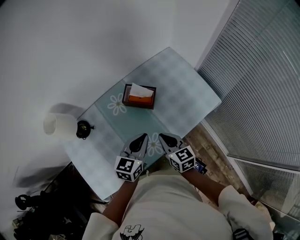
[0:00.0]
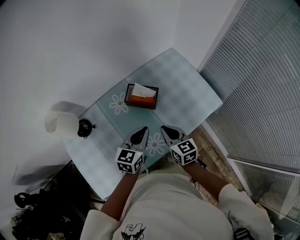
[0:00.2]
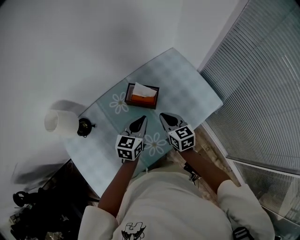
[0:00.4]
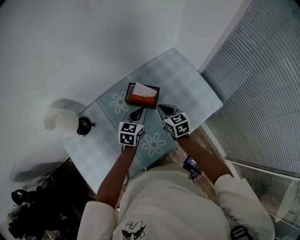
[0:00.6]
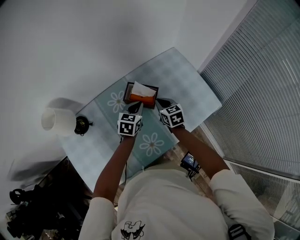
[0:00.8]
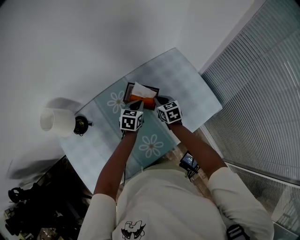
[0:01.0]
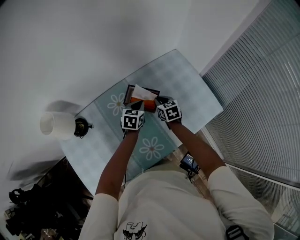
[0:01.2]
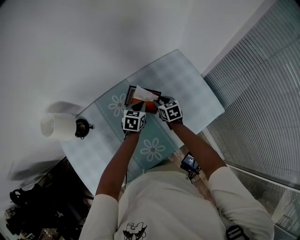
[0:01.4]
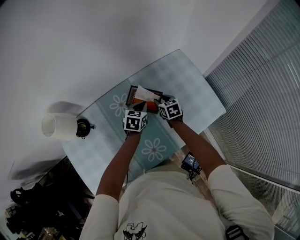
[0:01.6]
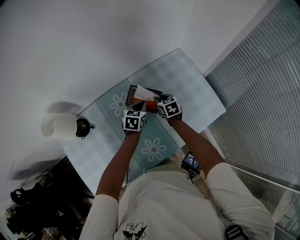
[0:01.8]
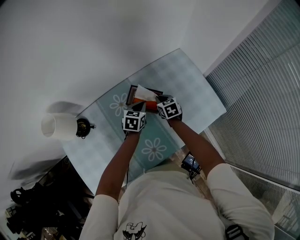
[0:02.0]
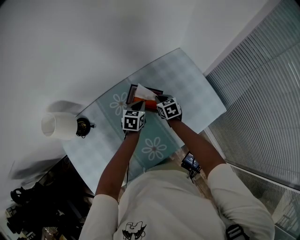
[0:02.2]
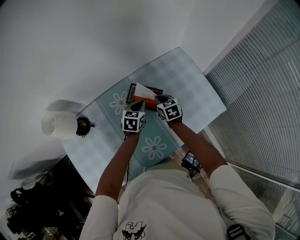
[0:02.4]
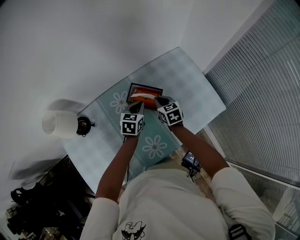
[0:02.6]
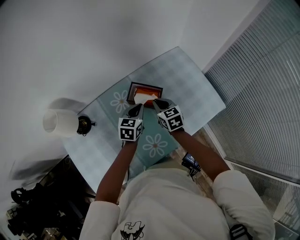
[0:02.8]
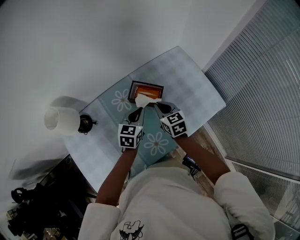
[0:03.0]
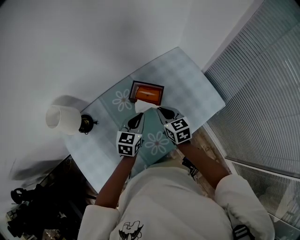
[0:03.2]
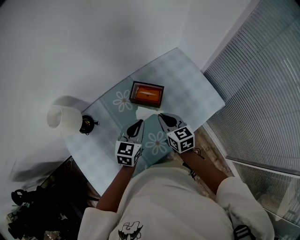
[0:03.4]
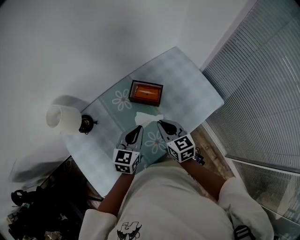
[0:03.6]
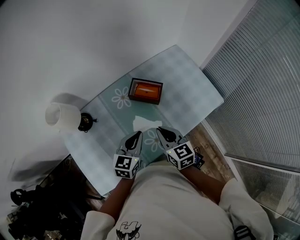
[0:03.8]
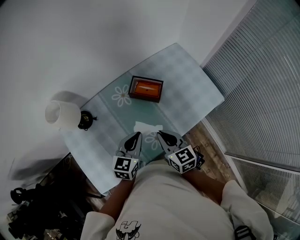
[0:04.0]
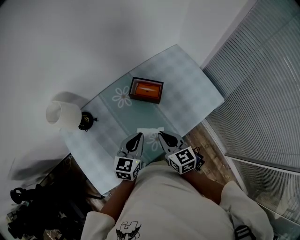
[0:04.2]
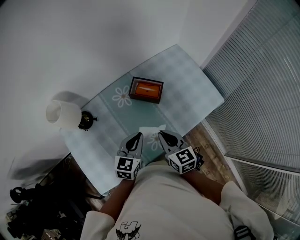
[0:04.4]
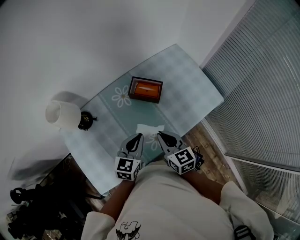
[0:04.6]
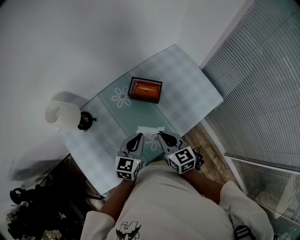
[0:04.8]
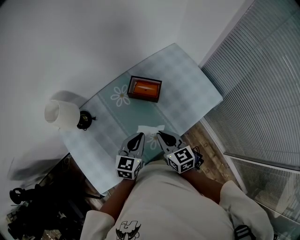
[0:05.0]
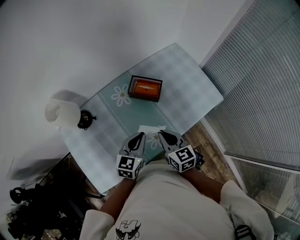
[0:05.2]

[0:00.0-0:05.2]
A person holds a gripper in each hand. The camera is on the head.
0:00.0 to 0:01.8: The grippers both shift forward and downward by about 25 cm. The left gripper rotates roughly 20 degrees. Meanwhile the right gripper opens.
0:01.8 to 0:03.4: The two grippers go approximately 20 cm backward and upward. The right gripper closes its fingers.
0:03.4 to 0:05.2: Both grippers move backward, approximately 10 cm.

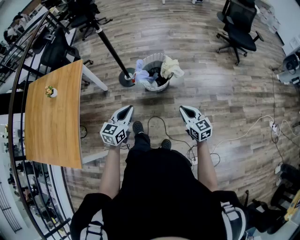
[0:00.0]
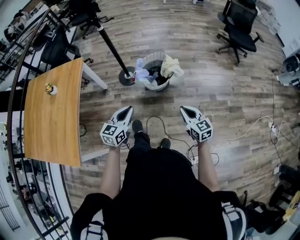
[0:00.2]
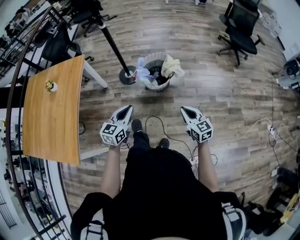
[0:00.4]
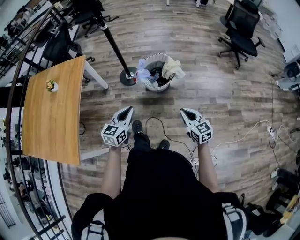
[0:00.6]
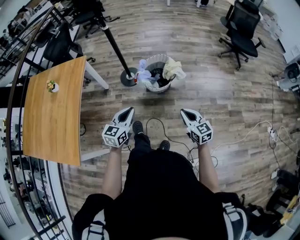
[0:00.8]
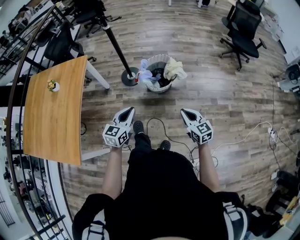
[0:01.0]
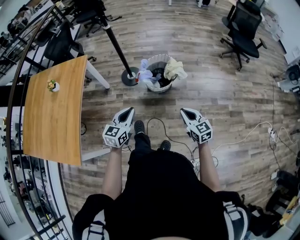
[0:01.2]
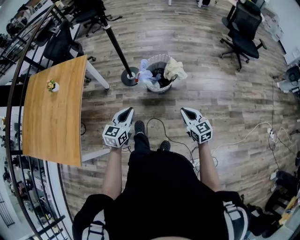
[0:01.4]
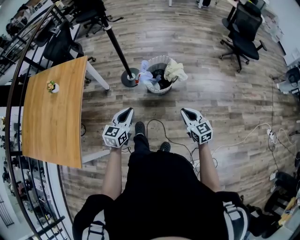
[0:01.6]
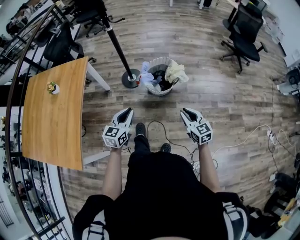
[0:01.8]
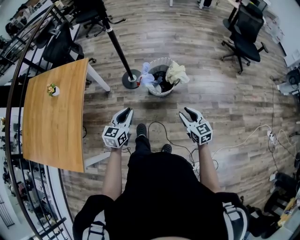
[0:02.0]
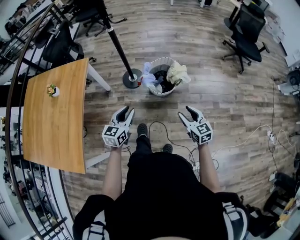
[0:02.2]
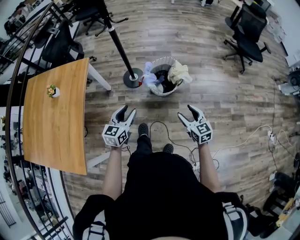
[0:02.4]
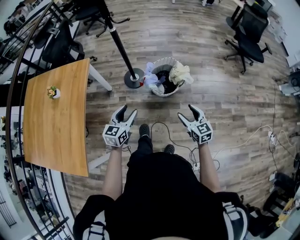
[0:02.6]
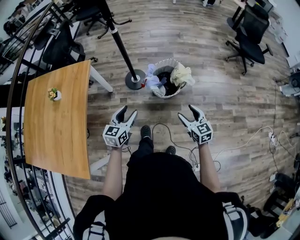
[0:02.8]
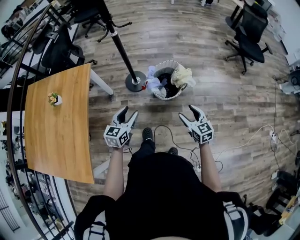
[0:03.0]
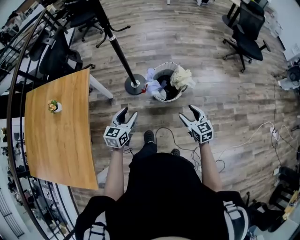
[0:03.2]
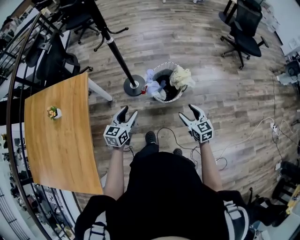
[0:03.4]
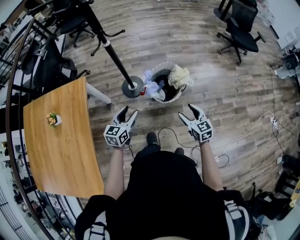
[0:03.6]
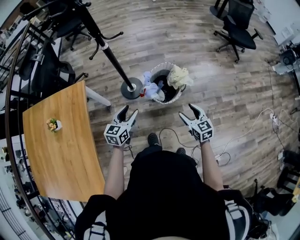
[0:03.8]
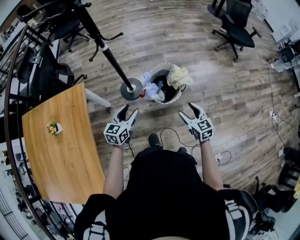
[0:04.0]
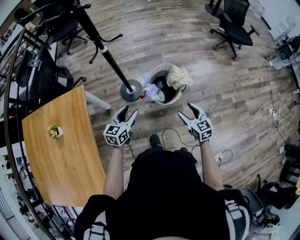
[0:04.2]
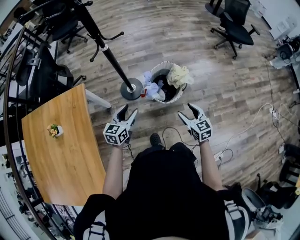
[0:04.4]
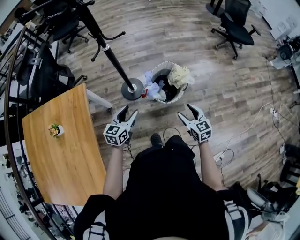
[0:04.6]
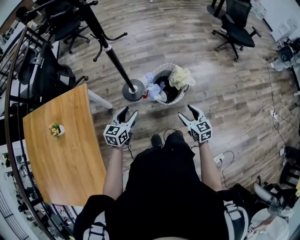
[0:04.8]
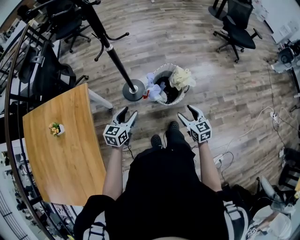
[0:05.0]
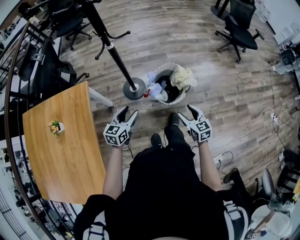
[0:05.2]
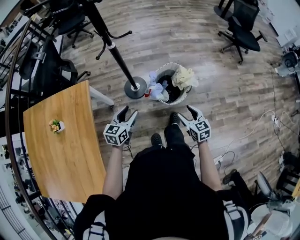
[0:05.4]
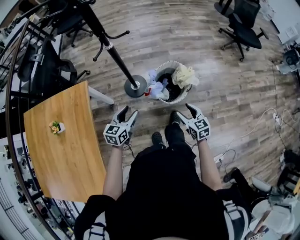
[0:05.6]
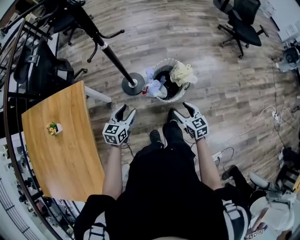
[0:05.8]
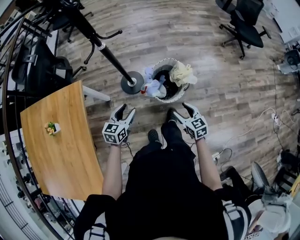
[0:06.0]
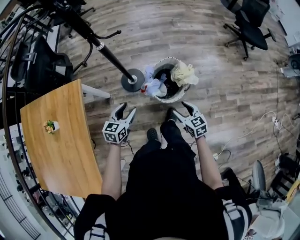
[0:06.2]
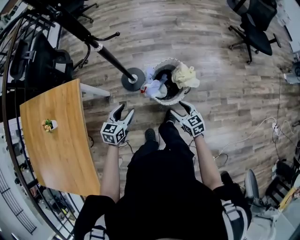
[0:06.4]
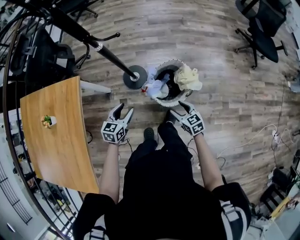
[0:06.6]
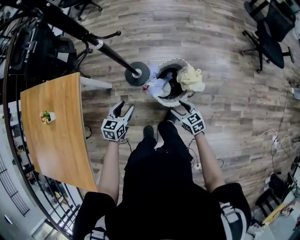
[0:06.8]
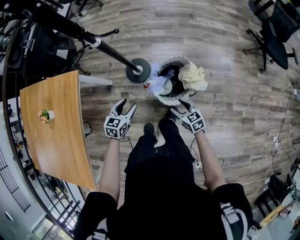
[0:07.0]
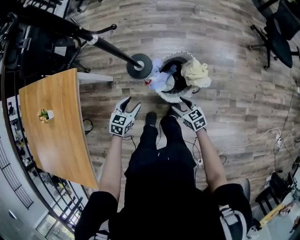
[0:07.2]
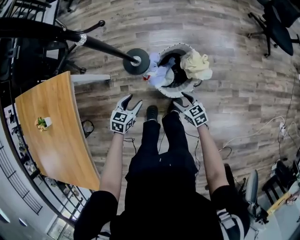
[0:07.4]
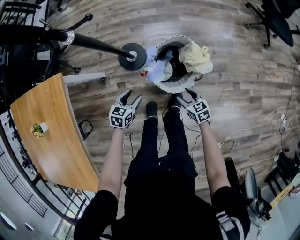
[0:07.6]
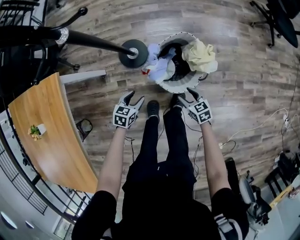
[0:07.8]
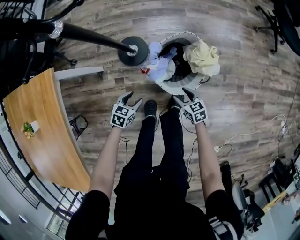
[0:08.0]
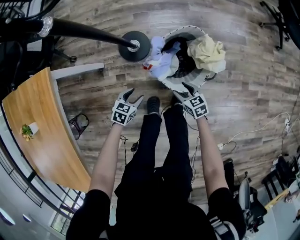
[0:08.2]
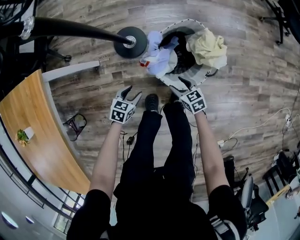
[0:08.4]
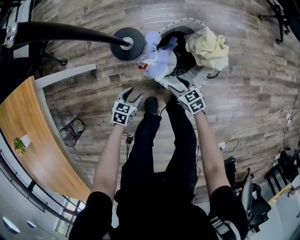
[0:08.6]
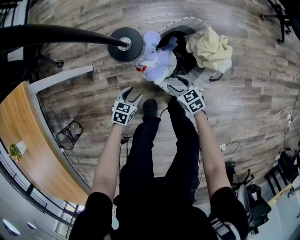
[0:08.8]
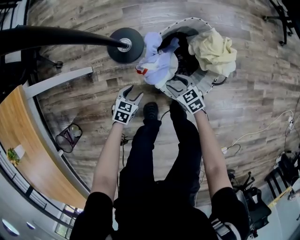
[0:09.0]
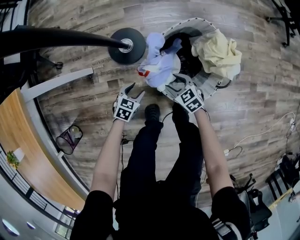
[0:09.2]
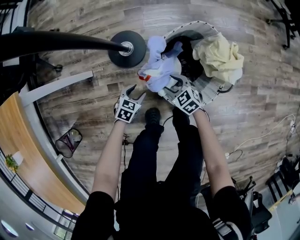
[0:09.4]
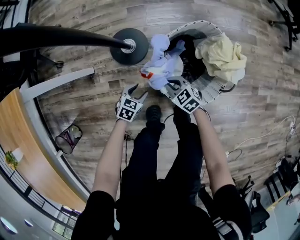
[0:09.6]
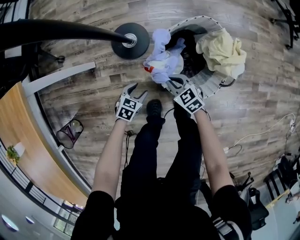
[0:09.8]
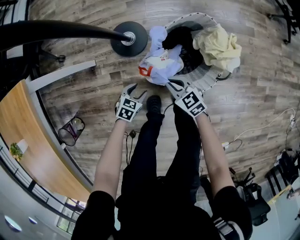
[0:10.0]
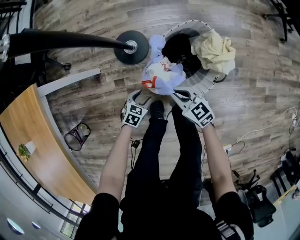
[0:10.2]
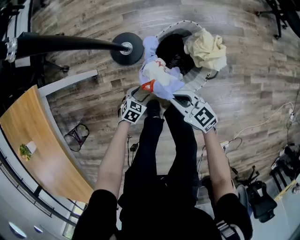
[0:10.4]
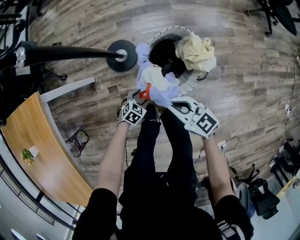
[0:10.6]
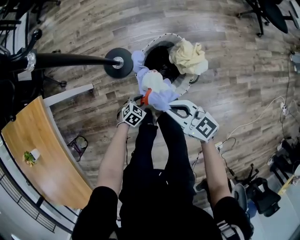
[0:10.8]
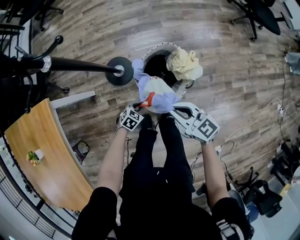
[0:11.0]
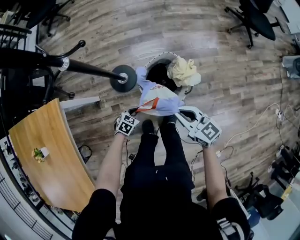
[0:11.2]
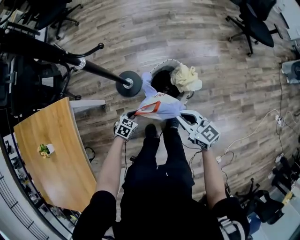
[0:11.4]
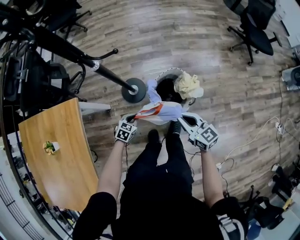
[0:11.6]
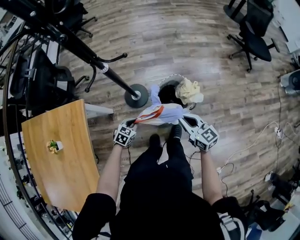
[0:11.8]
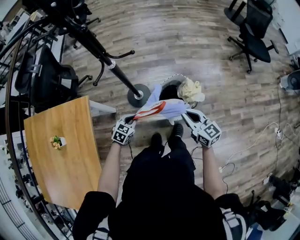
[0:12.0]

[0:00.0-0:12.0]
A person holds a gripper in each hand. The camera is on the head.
0:00.0 to 0:01.6: The grippers make only small movements.
0:01.6 to 0:03.0: Both grippers move forward and to the left, roughly 15 cm. The right gripper opens, while the left gripper opens.
0:03.0 to 0:04.4: The right gripper travels forward and to the left by about 10 cm, while the left gripper heads forward and to the left, covering some 15 cm.
0:04.4 to 0:06.0: The right gripper shifts by roughly 5 cm; the left gripper ends up approximately 5 cm from where it was.
0:06.0 to 0:07.6: The right gripper is displaced downward and forward by some 25 cm. The left gripper travels downward by some 25 cm.
0:07.6 to 0:09.0: Both grippers travel together downward, some 25 cm.
0:09.0 to 0:10.4: The right gripper heads upward, covering approximately 20 cm, swivels about 20 degrees, and closes its fingers, while the left gripper travels upward by some 5 cm.
0:10.4 to 0:12.0: The grippers both shift upward by roughly 35 cm. The left gripper closes its fingers. The right gripper changes its angle by roughly 20 degrees.

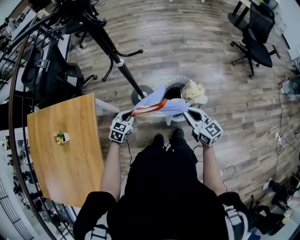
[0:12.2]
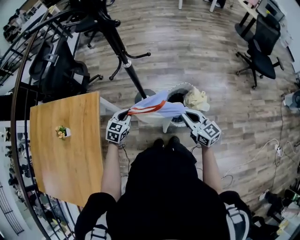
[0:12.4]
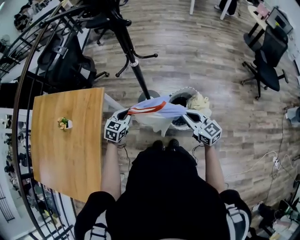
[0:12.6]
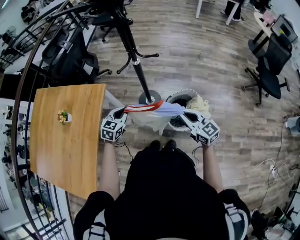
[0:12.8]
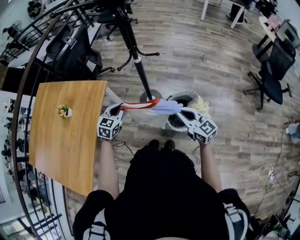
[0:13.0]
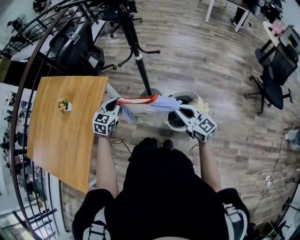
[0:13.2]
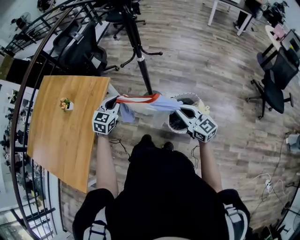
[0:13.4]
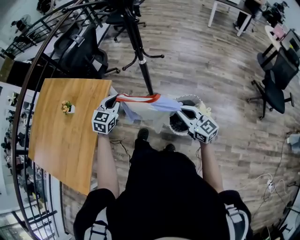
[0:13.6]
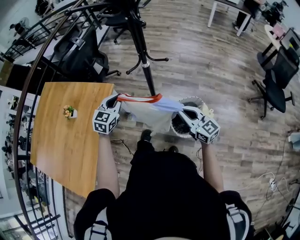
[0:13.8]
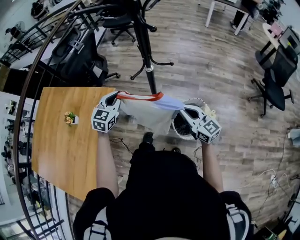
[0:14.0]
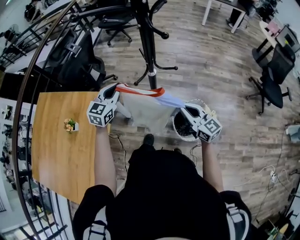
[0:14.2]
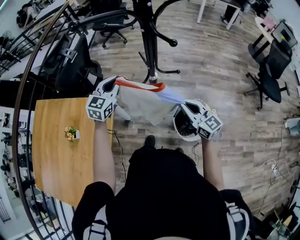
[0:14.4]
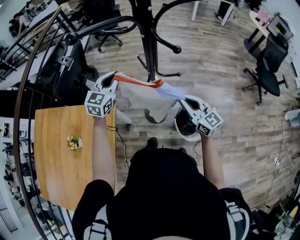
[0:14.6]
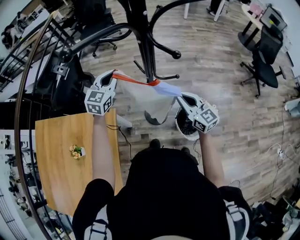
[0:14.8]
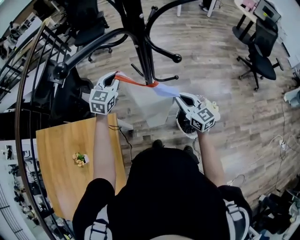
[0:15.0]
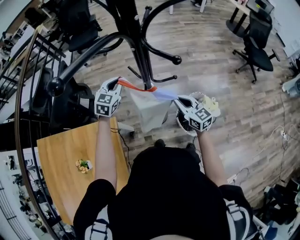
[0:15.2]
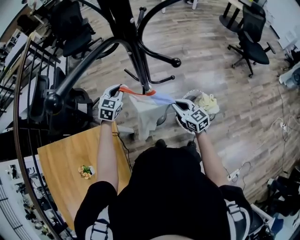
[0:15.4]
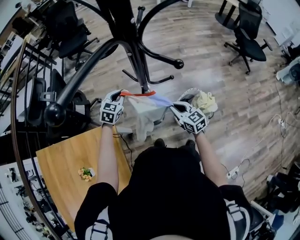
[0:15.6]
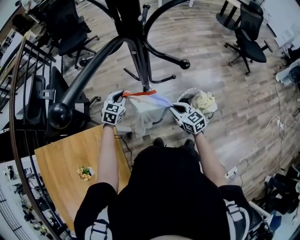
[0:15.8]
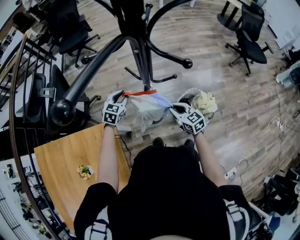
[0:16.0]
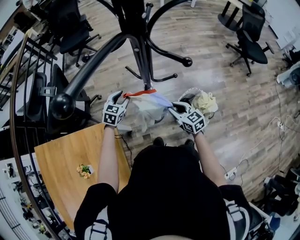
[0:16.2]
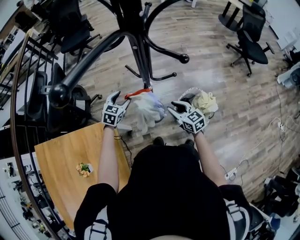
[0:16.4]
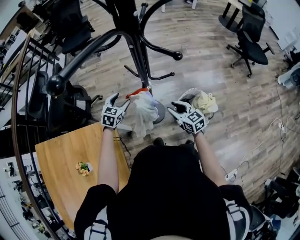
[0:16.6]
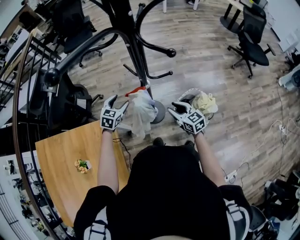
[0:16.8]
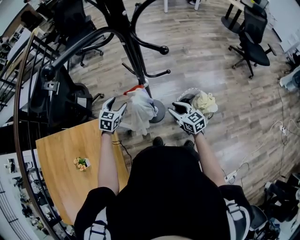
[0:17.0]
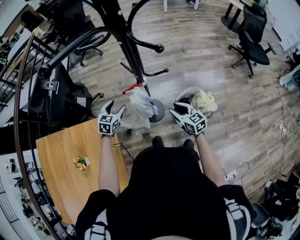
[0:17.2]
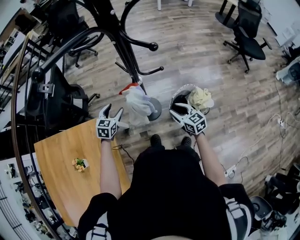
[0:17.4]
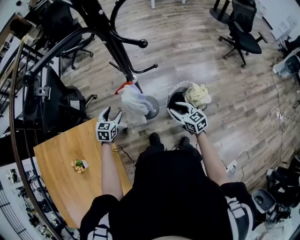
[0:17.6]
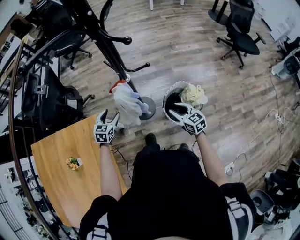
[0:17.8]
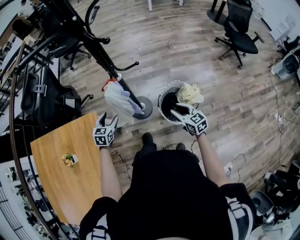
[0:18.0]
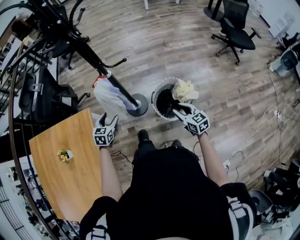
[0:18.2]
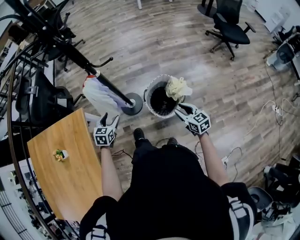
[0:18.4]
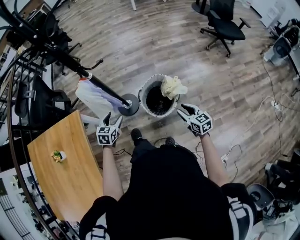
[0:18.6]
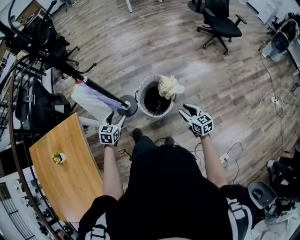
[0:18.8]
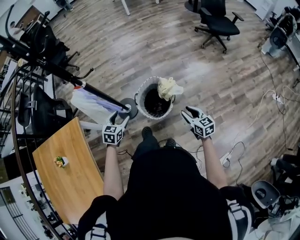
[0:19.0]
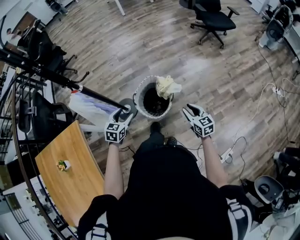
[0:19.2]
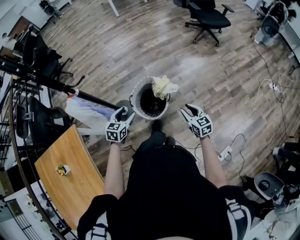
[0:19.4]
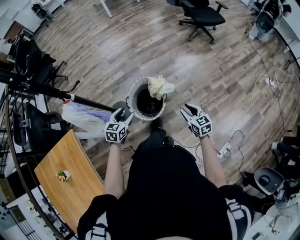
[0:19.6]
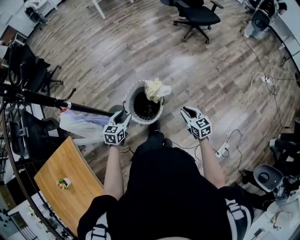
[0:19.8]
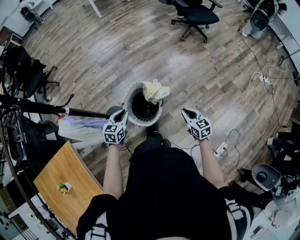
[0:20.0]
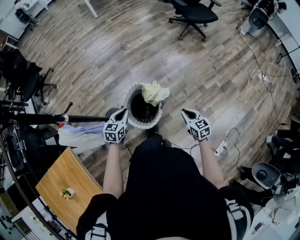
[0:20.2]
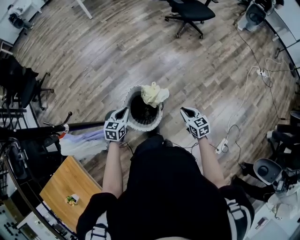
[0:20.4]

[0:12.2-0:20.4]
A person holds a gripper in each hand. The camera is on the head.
0:12.2 to 0:13.8: The left gripper goes roughly 20 cm upward, and swivels approximately 30 degrees. The right gripper changes place by roughly 10 cm, and turns by roughly 30 degrees.
0:13.8 to 0:15.4: The right gripper moves approximately 20 cm, and swivels some 30 degrees; the left gripper reaches some 10 cm upward, then returns, and changes its angle by some 30 degrees.
0:15.4 to 0:17.2: The right gripper heads backward, covering some 5 cm, and opens up. The left gripper heads backward and downward, covering about 15 cm, and opens its fingers.
0:17.2 to 0:18.8: Both grippers travel together to the right and backward, roughly 35 cm.
0:18.8 to 0:20.4: The left gripper is displaced forward and to the right by some 25 cm, rotates approximately 20 degrees, and closes up. The right gripper goes some 10 cm forward and to the right, swivels roughly 20 degrees, and closes up.
